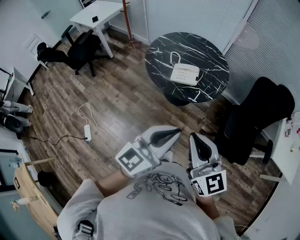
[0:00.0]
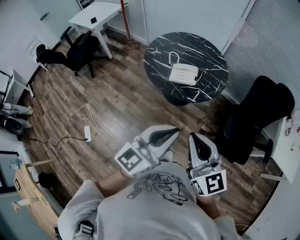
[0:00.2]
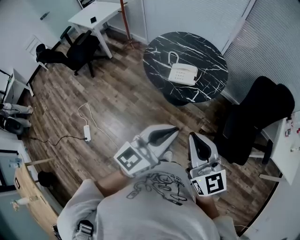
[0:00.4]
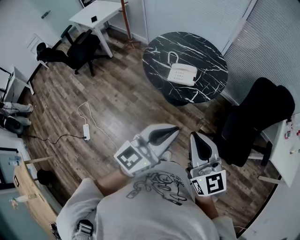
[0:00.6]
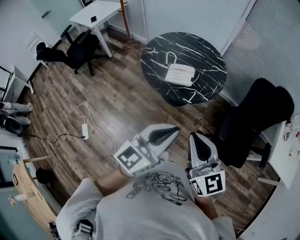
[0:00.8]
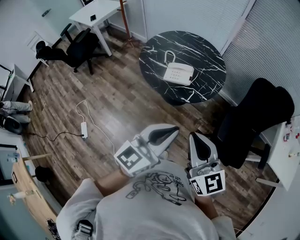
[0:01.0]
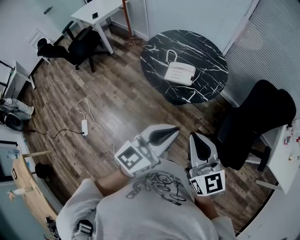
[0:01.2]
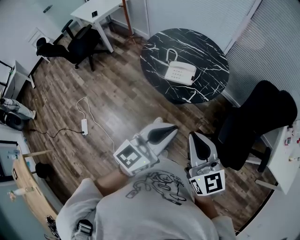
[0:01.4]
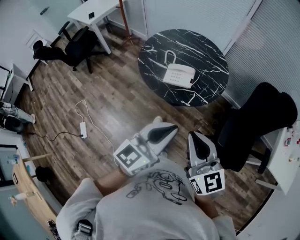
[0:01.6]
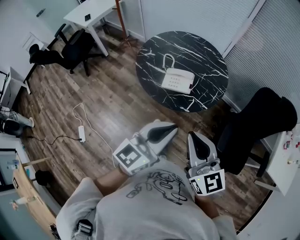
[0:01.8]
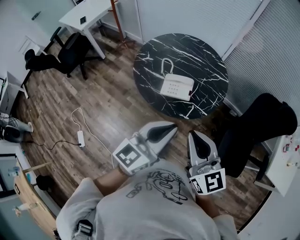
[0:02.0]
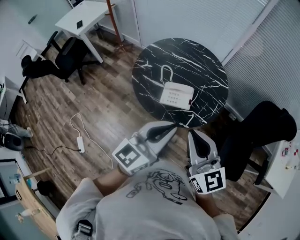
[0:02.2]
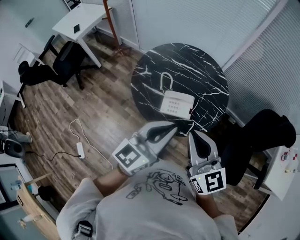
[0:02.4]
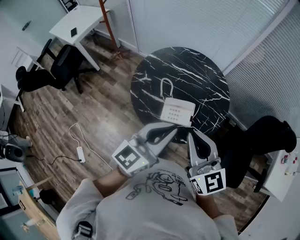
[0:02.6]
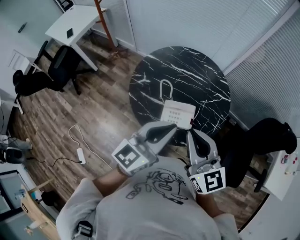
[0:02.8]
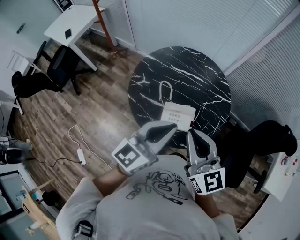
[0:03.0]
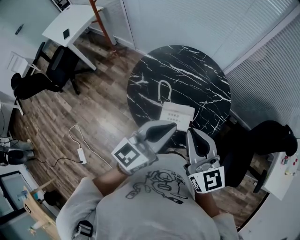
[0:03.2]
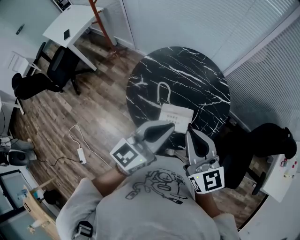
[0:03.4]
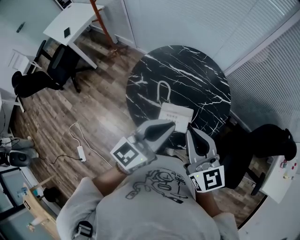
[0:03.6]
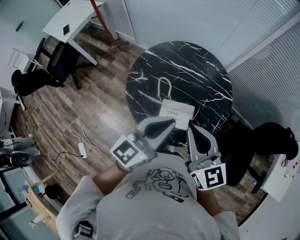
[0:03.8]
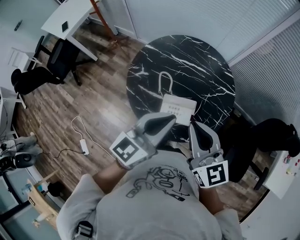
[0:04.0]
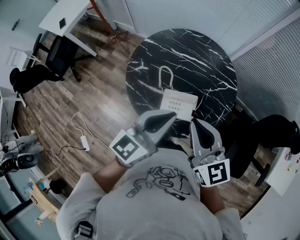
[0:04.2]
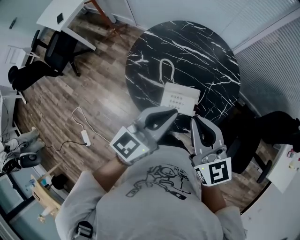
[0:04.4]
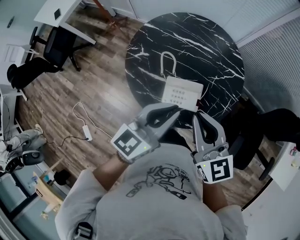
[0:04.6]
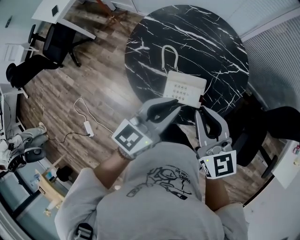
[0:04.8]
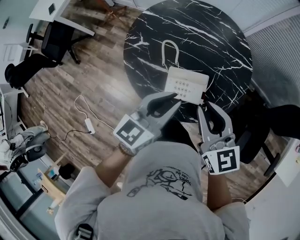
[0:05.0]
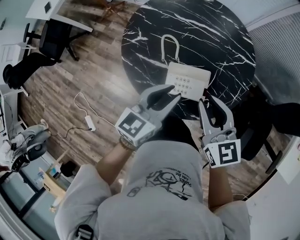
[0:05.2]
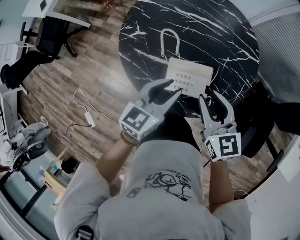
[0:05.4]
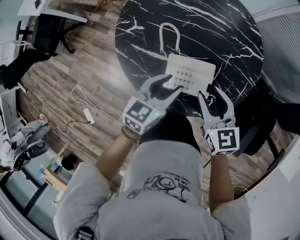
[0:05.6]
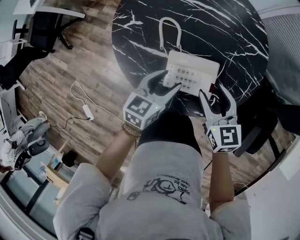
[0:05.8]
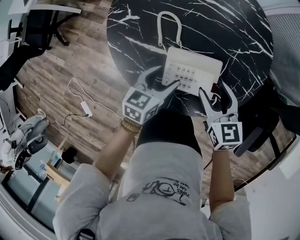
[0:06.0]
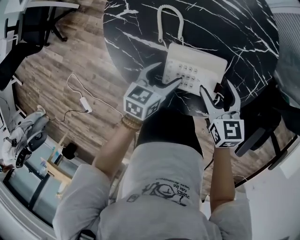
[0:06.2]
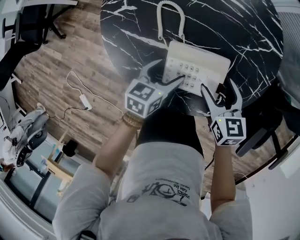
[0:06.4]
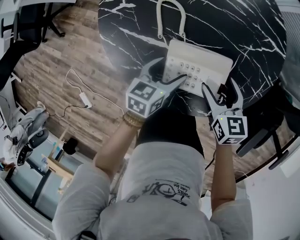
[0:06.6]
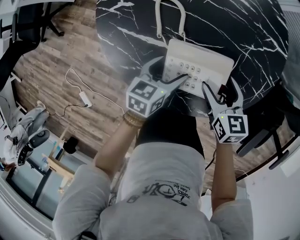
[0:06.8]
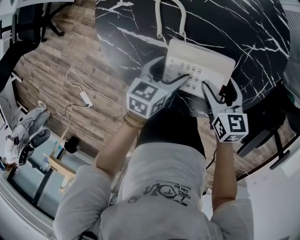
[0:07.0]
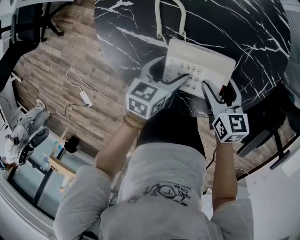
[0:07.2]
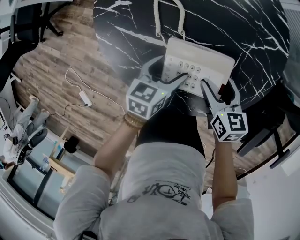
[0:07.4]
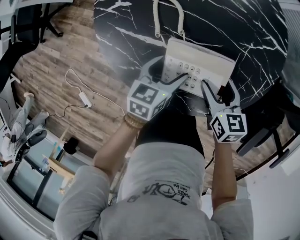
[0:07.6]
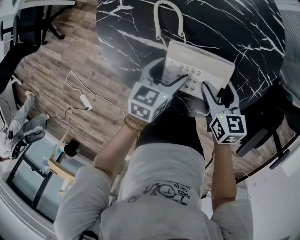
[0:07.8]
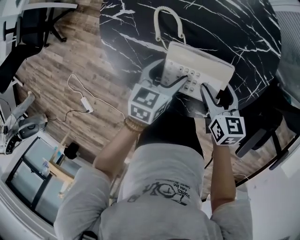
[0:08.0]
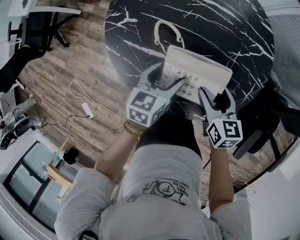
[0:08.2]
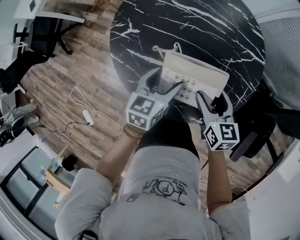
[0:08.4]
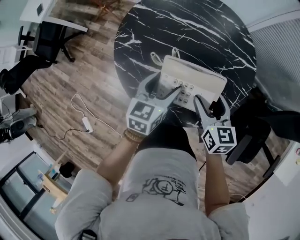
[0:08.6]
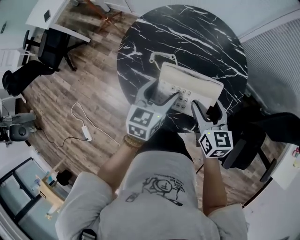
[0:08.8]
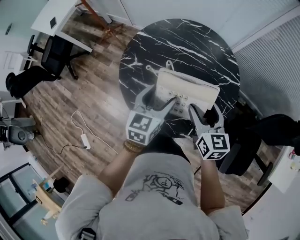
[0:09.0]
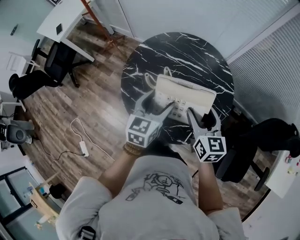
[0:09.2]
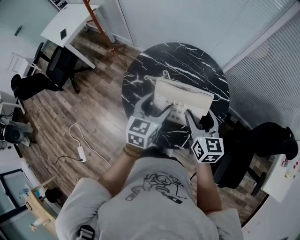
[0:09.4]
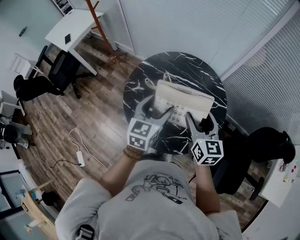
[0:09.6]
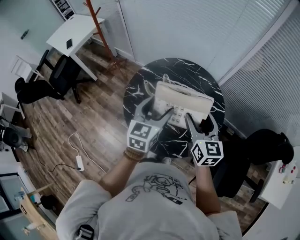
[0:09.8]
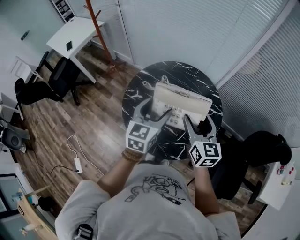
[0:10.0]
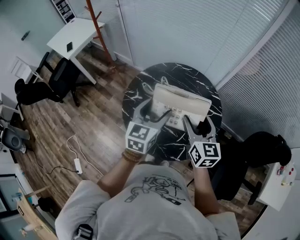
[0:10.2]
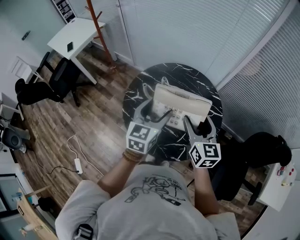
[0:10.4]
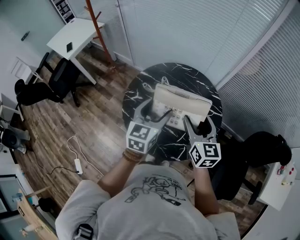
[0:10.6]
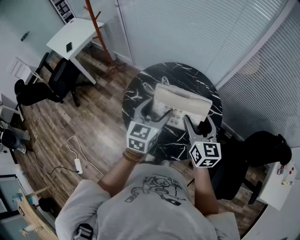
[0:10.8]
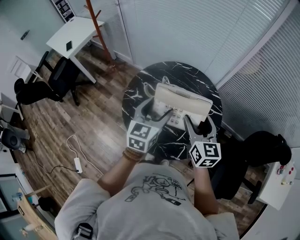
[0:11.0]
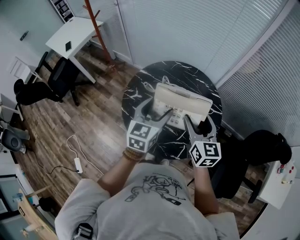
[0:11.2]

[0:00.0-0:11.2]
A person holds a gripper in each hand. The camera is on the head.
0:00.0 to 0:01.6: The two grippers go approximately 10 cm forward and to the right.
0:01.6 to 0:03.2: The grippers both shift forward by about 40 cm.
0:03.2 to 0:04.8: Both grippers move downward, about 10 cm.
0:04.8 to 0:06.4: The two grippers go approximately 35 cm downward. The left gripper turns by approximately 30 degrees, and opens up; the right gripper rotates approximately 30 degrees, and opens up.
0:06.4 to 0:08.0: The grippers make only small movements.
0:08.0 to 0:09.6: The grippers both shift upward by some 35 cm. The left gripper swivels approximately 30 degrees. Meanwhile the right gripper changes its angle by roughly 30 degrees.
0:09.6 to 0:11.2: The grippers move only a little.

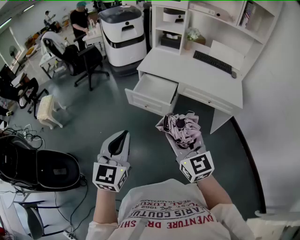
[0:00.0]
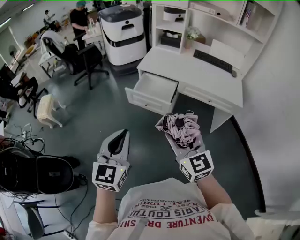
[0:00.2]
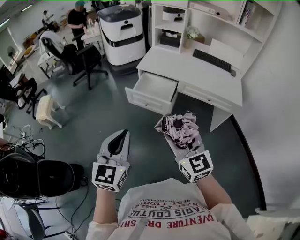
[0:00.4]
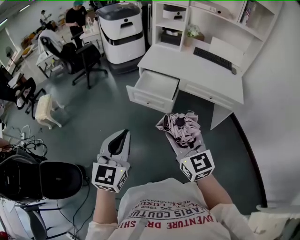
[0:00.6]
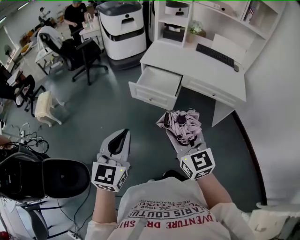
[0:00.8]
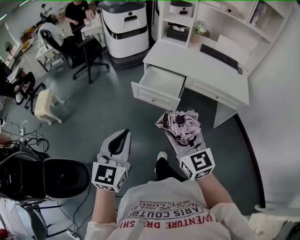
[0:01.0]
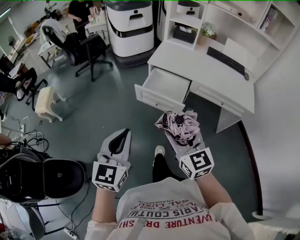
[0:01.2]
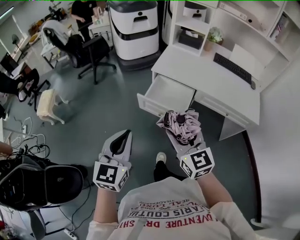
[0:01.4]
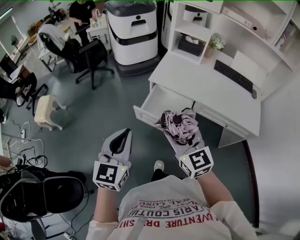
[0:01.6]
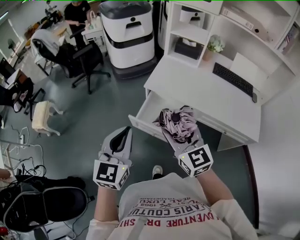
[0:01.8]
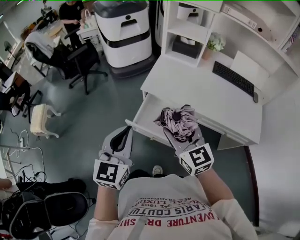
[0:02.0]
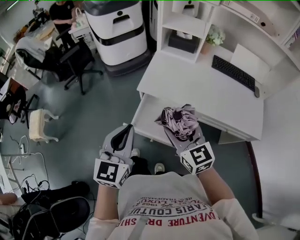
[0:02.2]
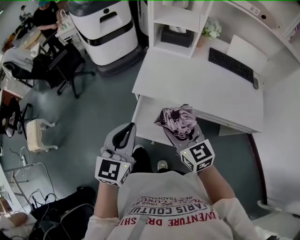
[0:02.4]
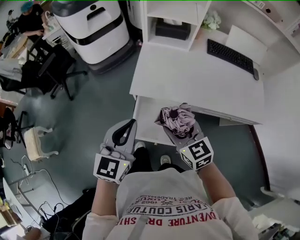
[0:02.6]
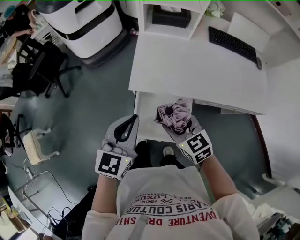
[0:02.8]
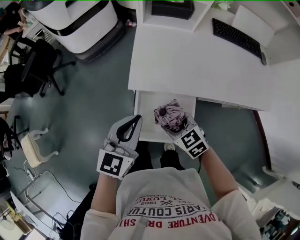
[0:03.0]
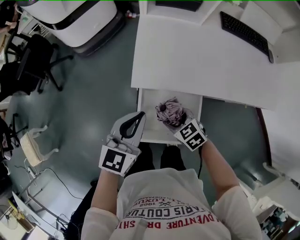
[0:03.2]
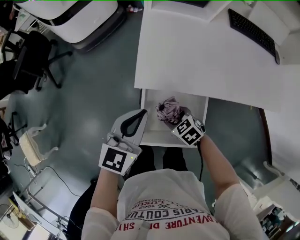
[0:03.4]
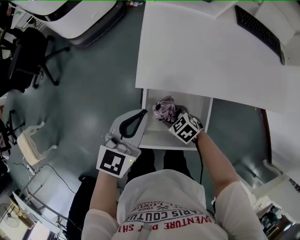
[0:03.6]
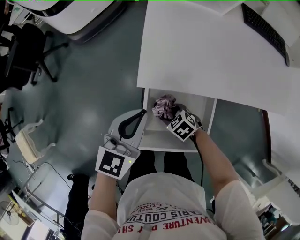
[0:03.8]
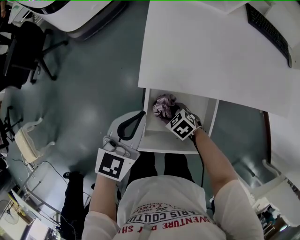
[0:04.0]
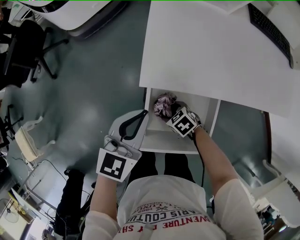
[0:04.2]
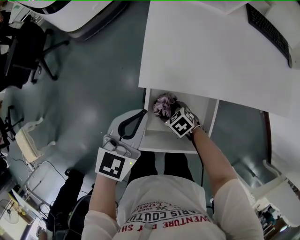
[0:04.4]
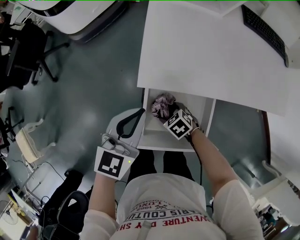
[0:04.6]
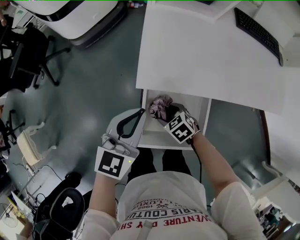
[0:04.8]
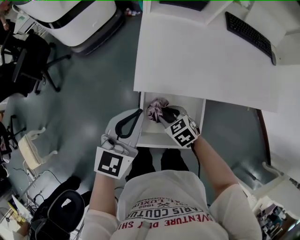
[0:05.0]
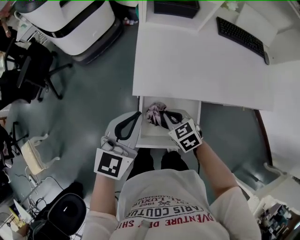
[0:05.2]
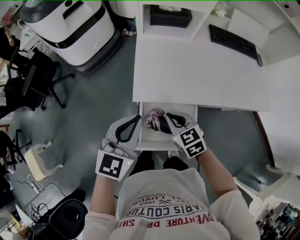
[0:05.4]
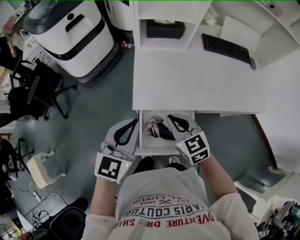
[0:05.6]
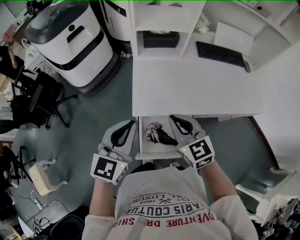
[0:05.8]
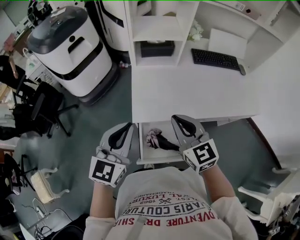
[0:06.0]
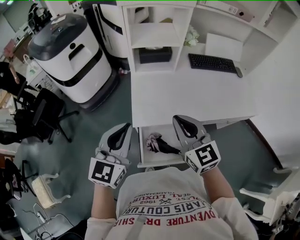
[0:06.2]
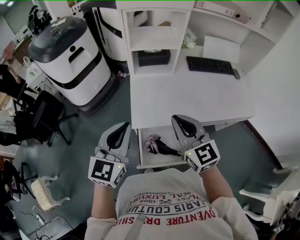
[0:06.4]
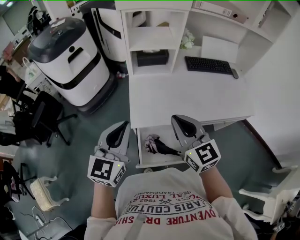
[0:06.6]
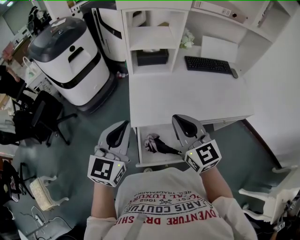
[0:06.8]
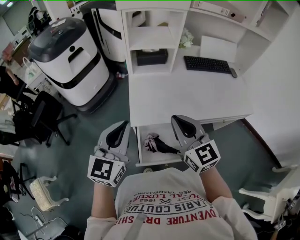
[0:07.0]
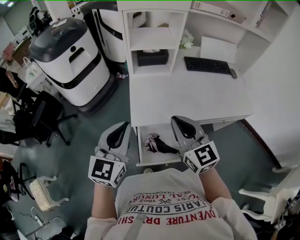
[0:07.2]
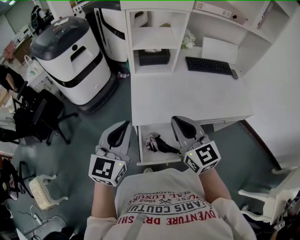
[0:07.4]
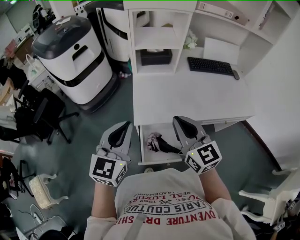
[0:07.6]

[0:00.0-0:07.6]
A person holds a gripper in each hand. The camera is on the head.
0:00.0 to 0:01.6: The grippers both shift forward by roughly 25 cm.
0:01.6 to 0:03.0: Both grippers travel together forward and downward, some 40 cm. The right gripper tips its fingers downward by about 30 degrees, while the left gripper swivels approximately 30 degrees.
0:03.0 to 0:04.6: The left gripper heads downward and forward, covering some 15 cm; the right gripper heads downward, covering approximately 25 cm, and swivels about 30 degrees.
0:04.6 to 0:06.0: The right gripper is displaced upward by approximately 50 cm, angles its fingers upward, by roughly 50 degrees, and closes up; the left gripper shifts about 25 cm upward.
0:06.0 to 0:07.6: The right gripper moves some 5 cm.

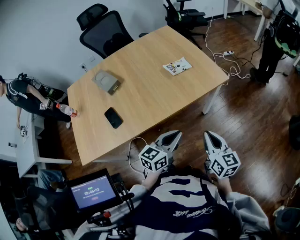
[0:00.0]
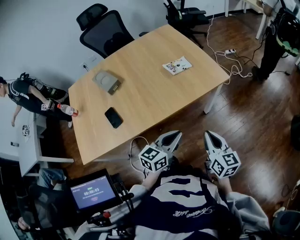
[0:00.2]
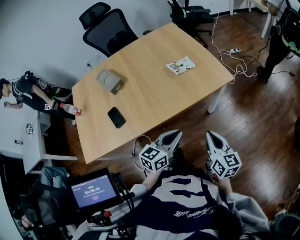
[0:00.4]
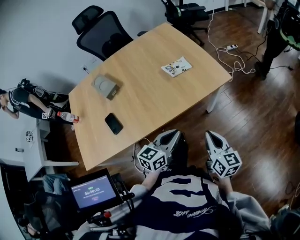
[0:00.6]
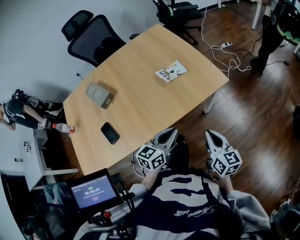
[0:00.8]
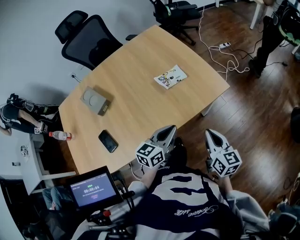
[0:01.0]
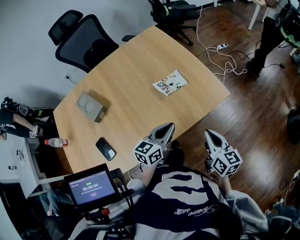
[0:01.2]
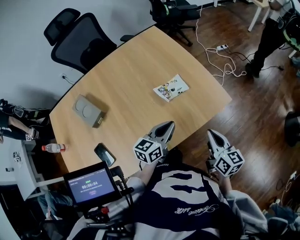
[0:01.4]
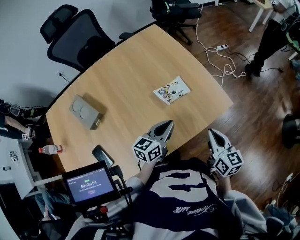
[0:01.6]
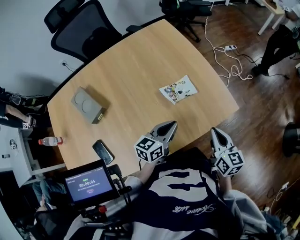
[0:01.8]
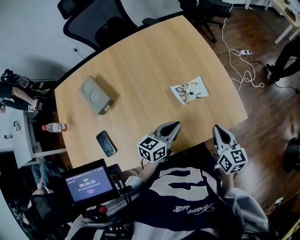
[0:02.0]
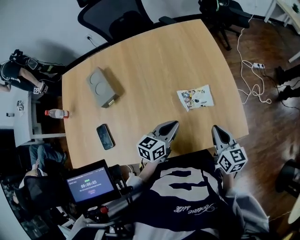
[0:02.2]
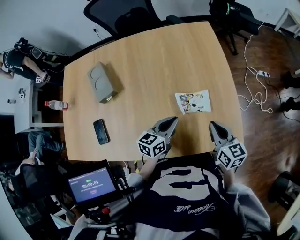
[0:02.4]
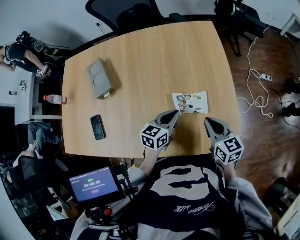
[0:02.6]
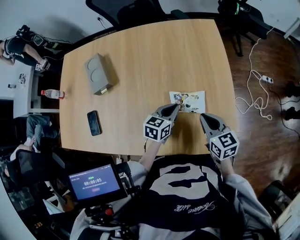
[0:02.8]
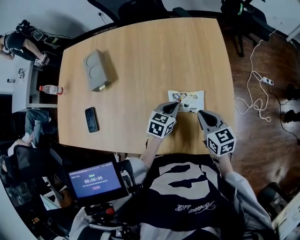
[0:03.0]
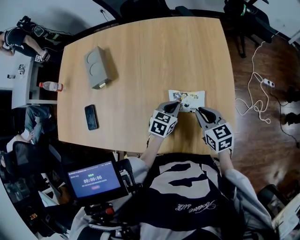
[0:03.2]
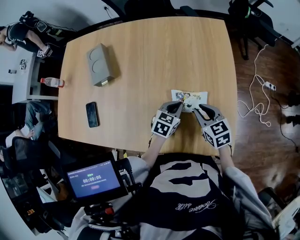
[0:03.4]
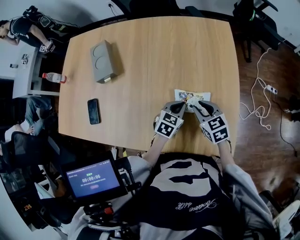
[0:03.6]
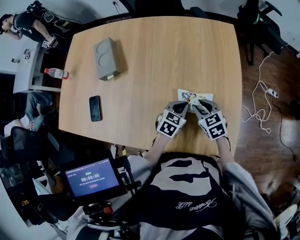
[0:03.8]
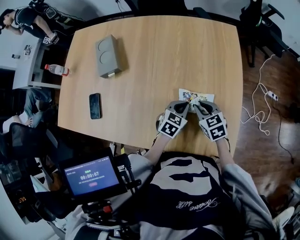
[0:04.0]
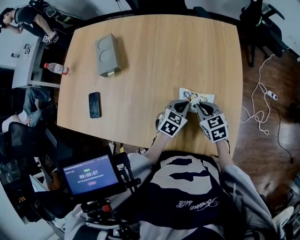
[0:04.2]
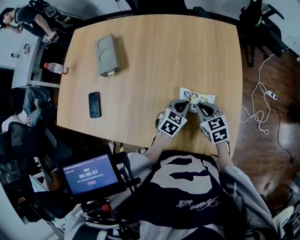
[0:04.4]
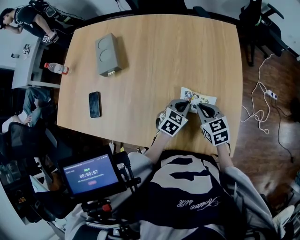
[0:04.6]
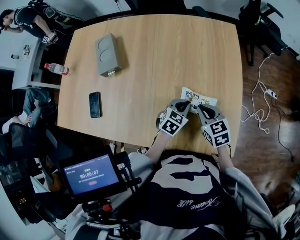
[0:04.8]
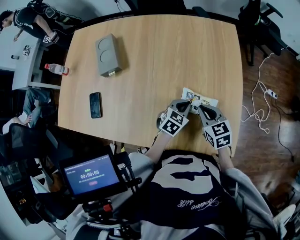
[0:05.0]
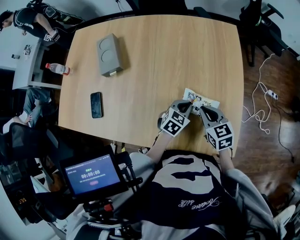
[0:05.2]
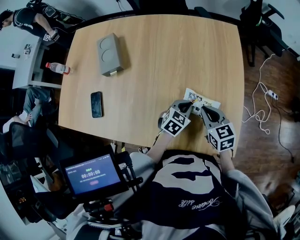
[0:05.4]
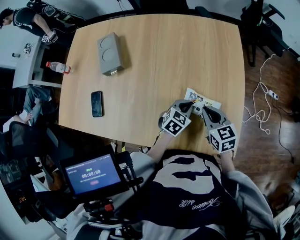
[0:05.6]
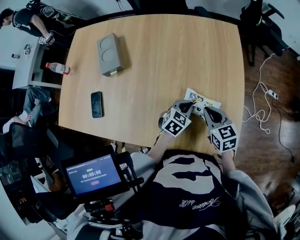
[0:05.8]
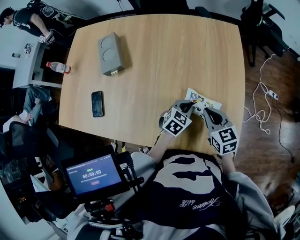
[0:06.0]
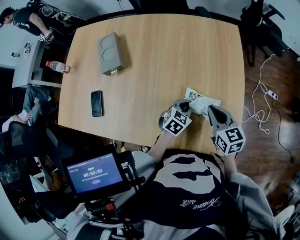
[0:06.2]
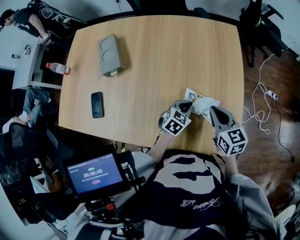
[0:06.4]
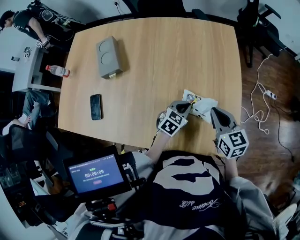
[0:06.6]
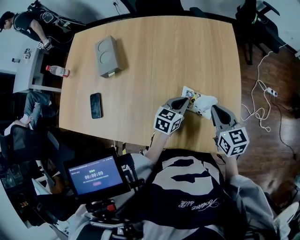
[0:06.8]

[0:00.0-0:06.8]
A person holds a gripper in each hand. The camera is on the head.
0:00.0 to 0:01.4: The two grippers go approximately 25 cm forward.
0:01.4 to 0:02.8: The right gripper ends up some 25 cm from where it was, and rotates some 50 degrees; the left gripper ends up about 20 cm from where it was, and rotates about 30 degrees.
0:02.8 to 0:04.0: The right gripper heads downward and forward, covering roughly 10 cm, and turns by roughly 30 degrees.
0:04.0 to 0:05.4: The right gripper moves about 5 cm.
0:05.4 to 0:06.8: The right gripper travels upward by about 5 cm.
